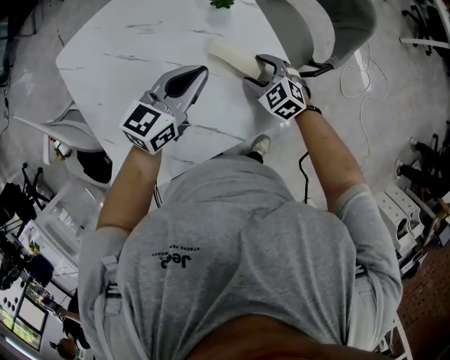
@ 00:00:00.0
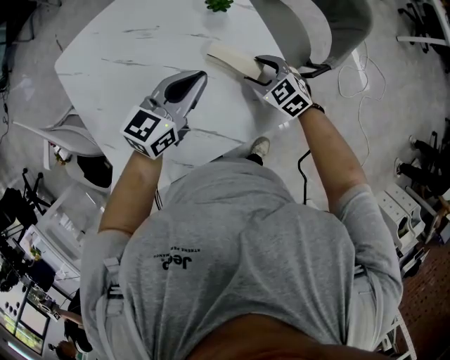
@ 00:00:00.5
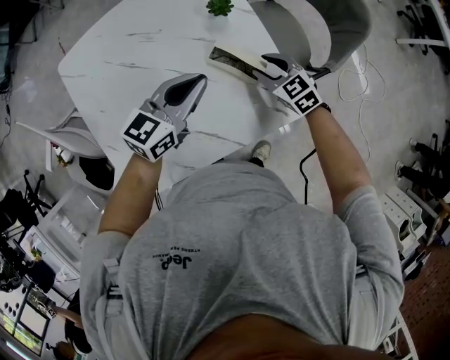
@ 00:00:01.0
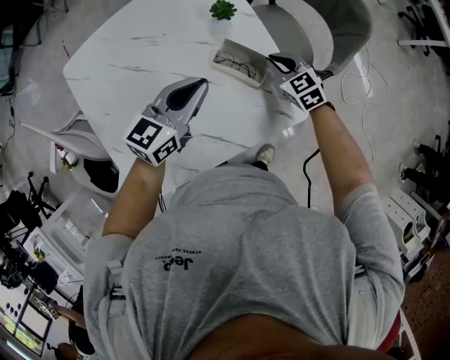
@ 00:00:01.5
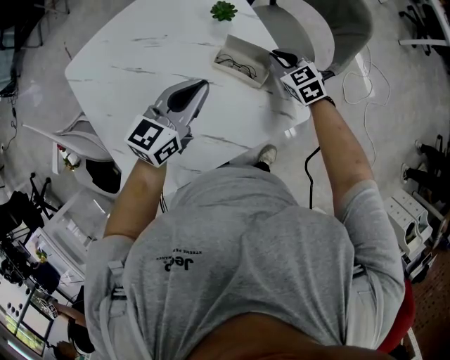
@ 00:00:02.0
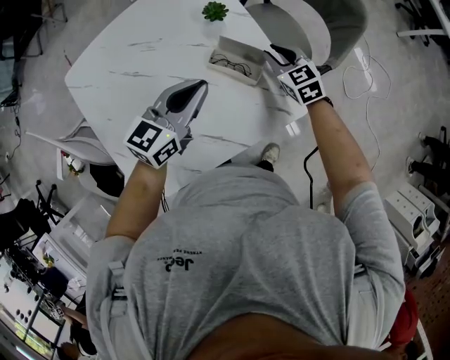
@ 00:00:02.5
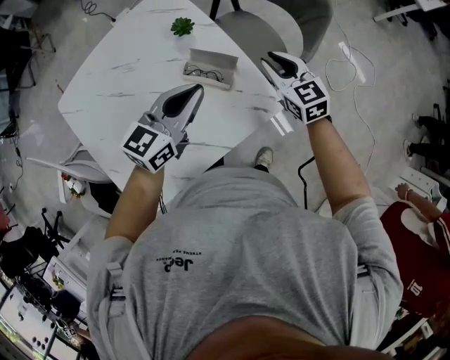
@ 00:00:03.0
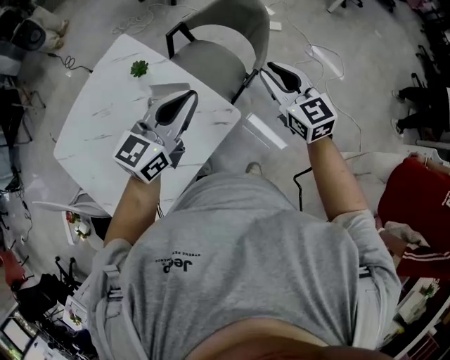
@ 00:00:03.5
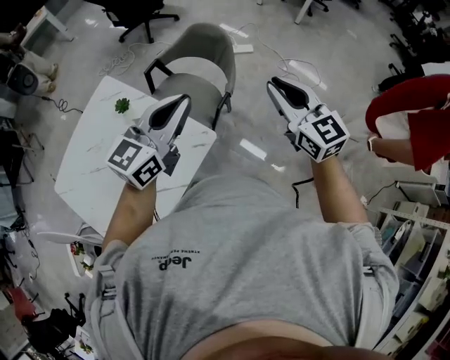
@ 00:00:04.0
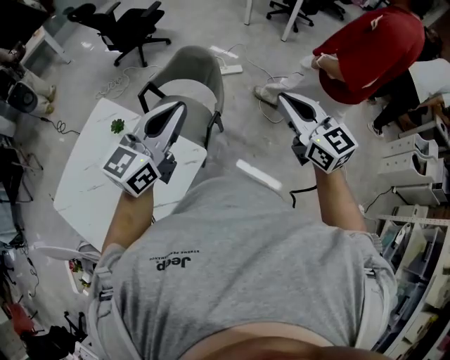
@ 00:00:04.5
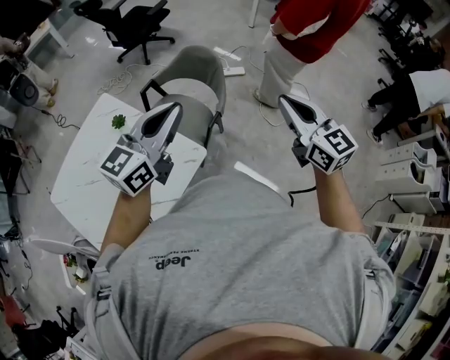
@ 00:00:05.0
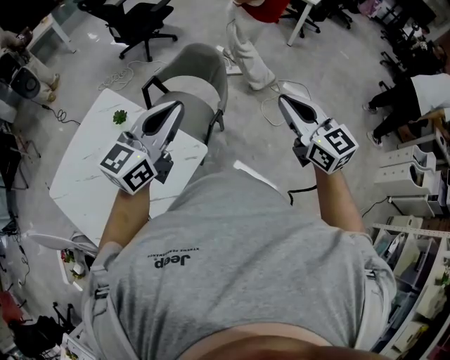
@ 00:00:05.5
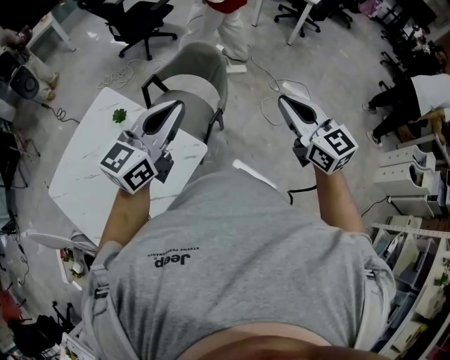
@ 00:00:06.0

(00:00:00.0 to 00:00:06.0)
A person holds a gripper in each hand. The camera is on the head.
00:00:00.0 - 00:00:02.0: The right gripper shifts about 10 cm forward and to the right, and closes.
00:00:02.0 - 00:00:04.0: The left gripper shifts by about 35 cm, and changes its angle by roughly 30 degrees; the right gripper goes about 35 cm upward, and tilts its fingers about 40 degrees upward.
00:00:04.0 - 00:00:06.0: The right gripper heads to the right, covering approximately 5 cm.

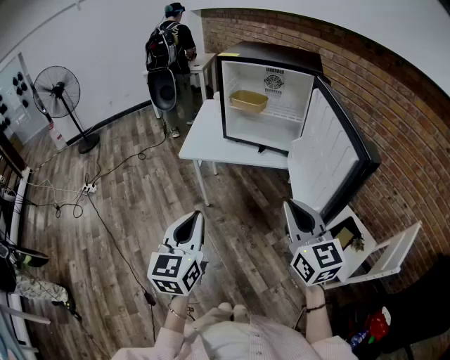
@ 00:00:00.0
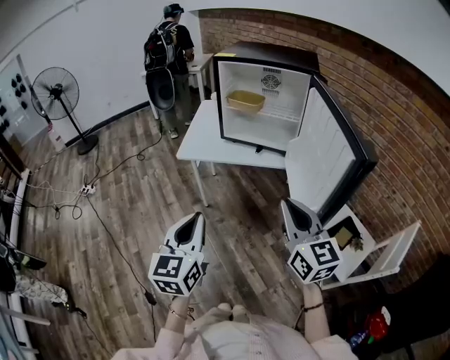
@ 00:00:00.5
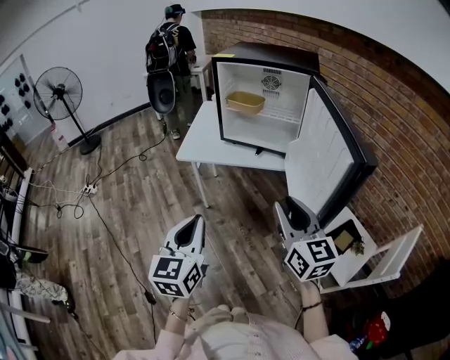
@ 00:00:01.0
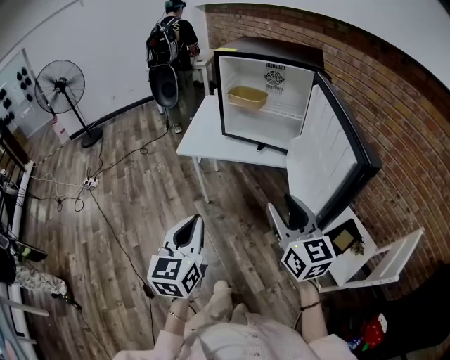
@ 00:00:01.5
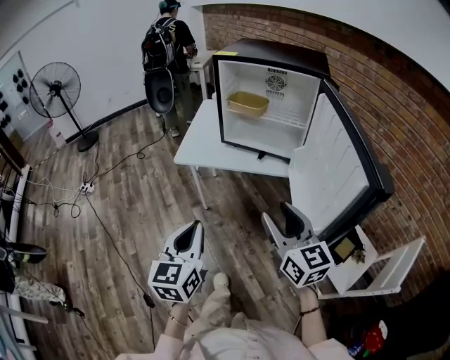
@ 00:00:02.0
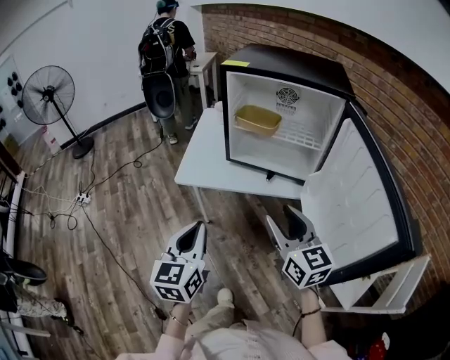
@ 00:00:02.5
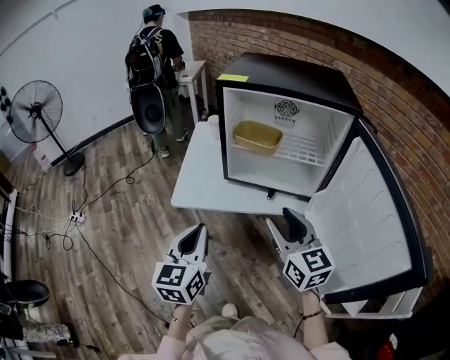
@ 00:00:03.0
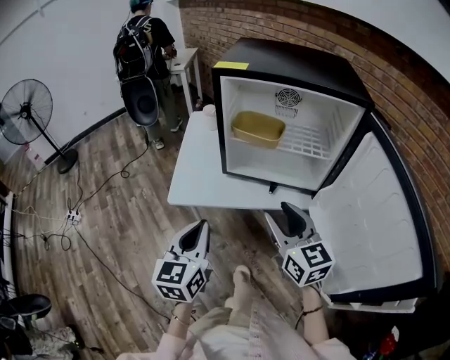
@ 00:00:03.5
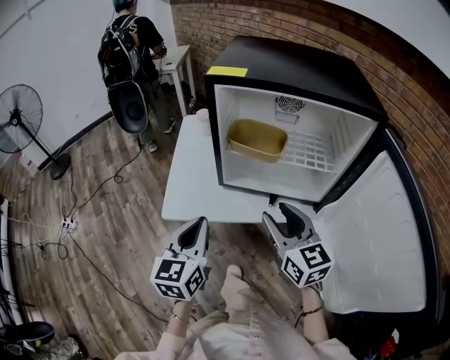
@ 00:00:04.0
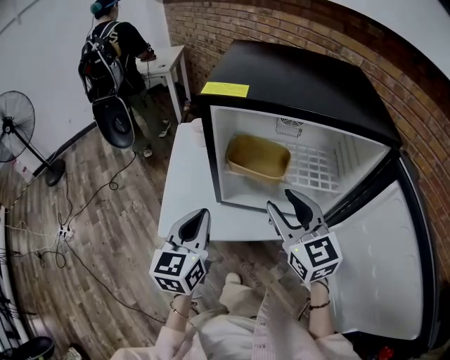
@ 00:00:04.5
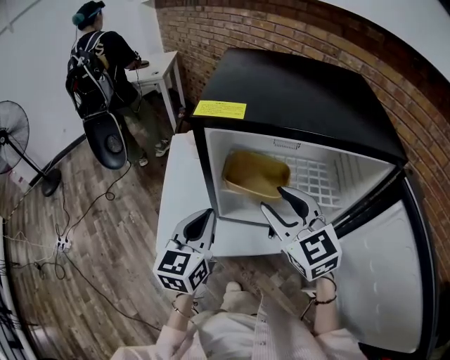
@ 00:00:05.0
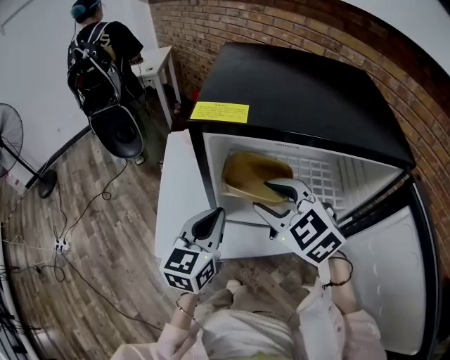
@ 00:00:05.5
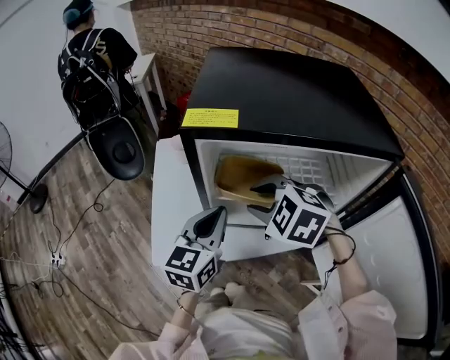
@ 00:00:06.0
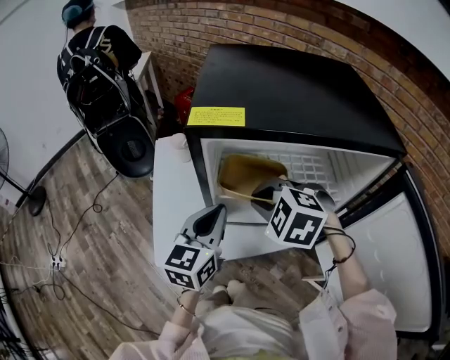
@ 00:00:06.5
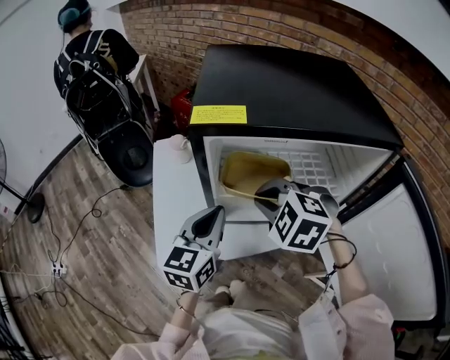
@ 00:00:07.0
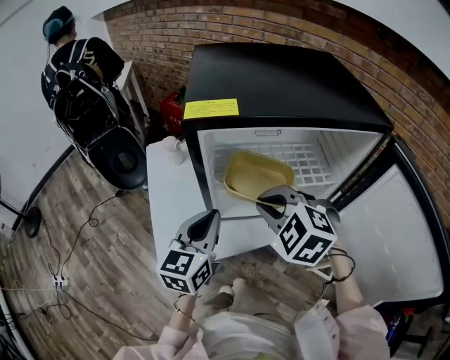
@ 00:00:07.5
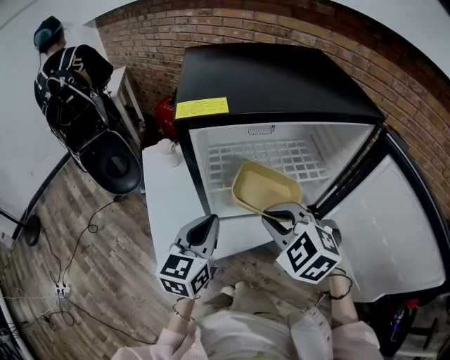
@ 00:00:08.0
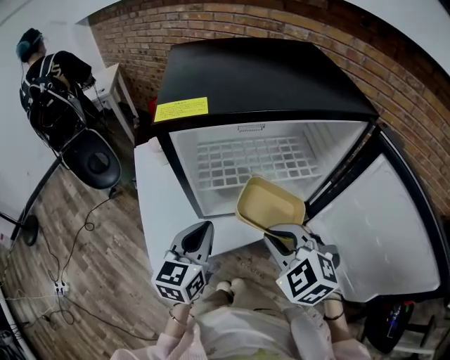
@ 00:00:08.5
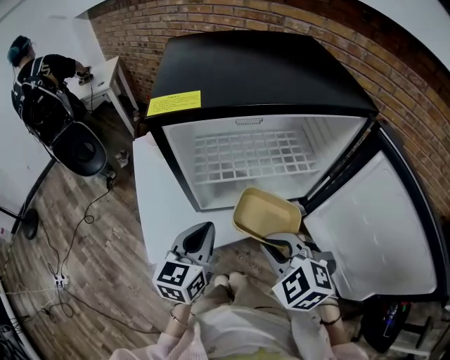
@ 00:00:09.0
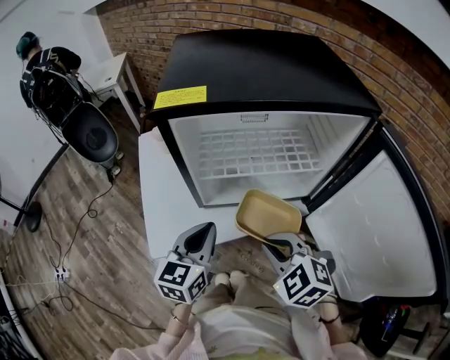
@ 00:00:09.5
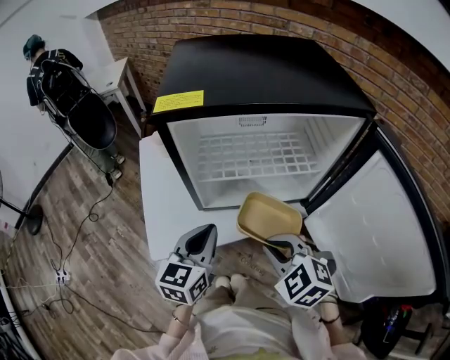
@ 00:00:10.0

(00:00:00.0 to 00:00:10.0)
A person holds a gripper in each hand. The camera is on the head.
00:00:00.0 - 00:00:02.0: The right gripper moves forward, some 5 cm, and opens. Meanwhile the left gripper moves approximately 5 cm.
00:00:02.0 - 00:00:04.0: Both grippers move forward, some 30 cm.
00:00:04.0 - 00:00:06.0: The left gripper shifts approximately 20 cm forward and to the right; the right gripper moves forward, approximately 15 cm, and tilts its fingers approximately 40 degrees downward.
00:00:06.0 - 00:00:08.0: The right gripper shifts about 10 cm backward, rotates about 20 degrees, and closes.
00:00:08.0 - 00:00:10.0: The left gripper shifts by approximately 5 cm, while the right gripper heads backward and downward, covering approximately 10 cm.

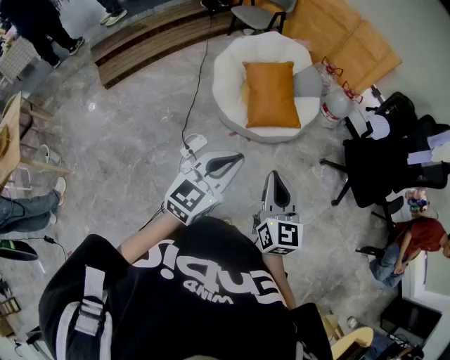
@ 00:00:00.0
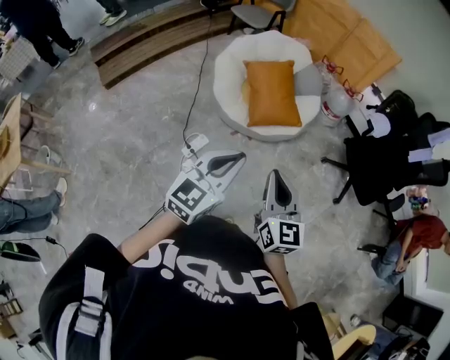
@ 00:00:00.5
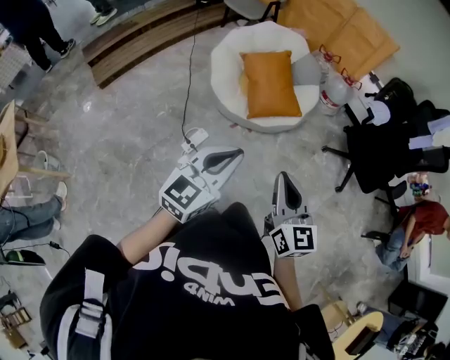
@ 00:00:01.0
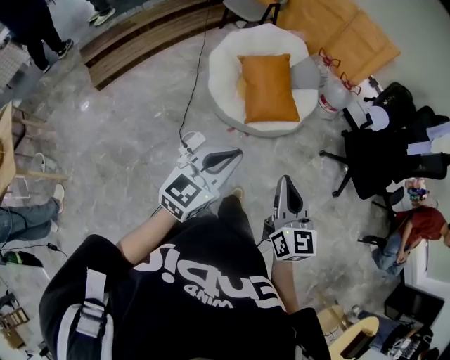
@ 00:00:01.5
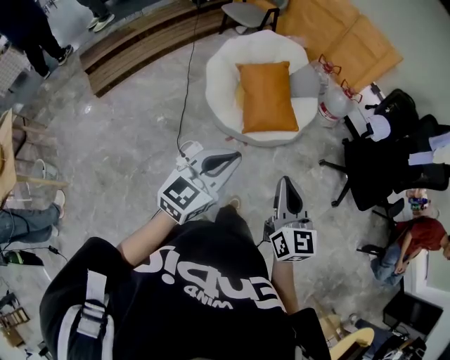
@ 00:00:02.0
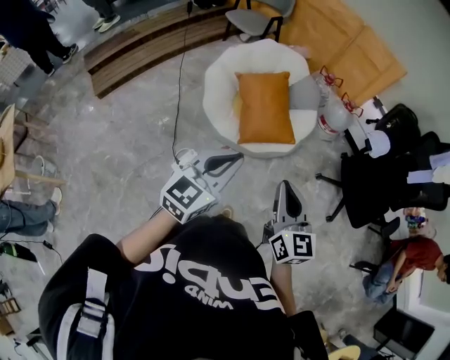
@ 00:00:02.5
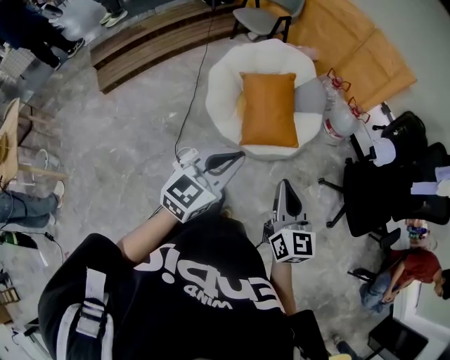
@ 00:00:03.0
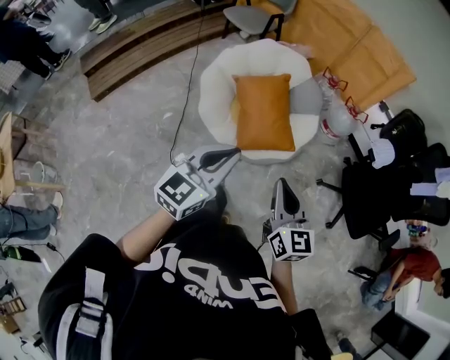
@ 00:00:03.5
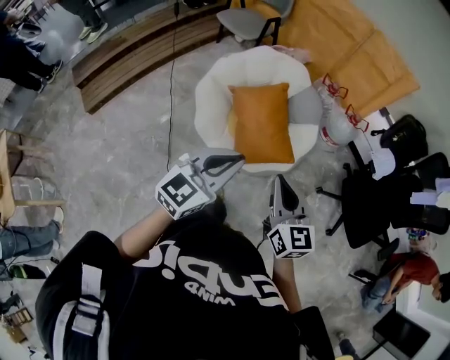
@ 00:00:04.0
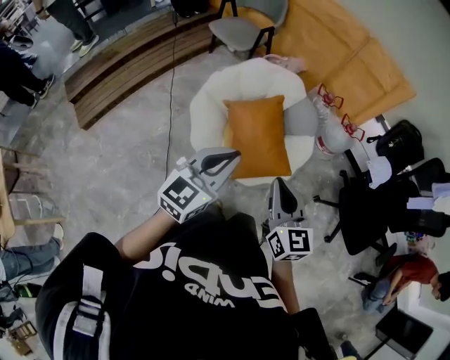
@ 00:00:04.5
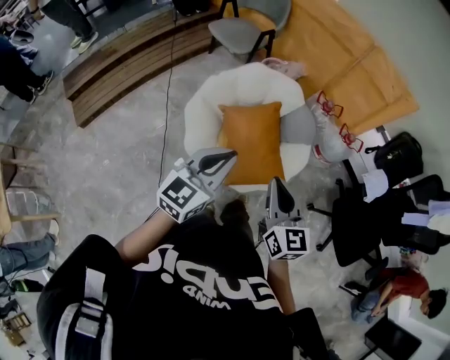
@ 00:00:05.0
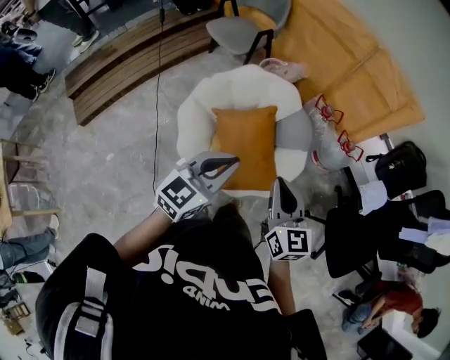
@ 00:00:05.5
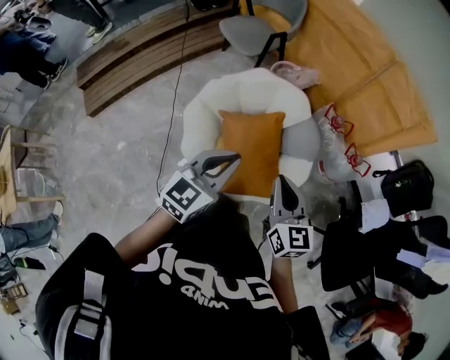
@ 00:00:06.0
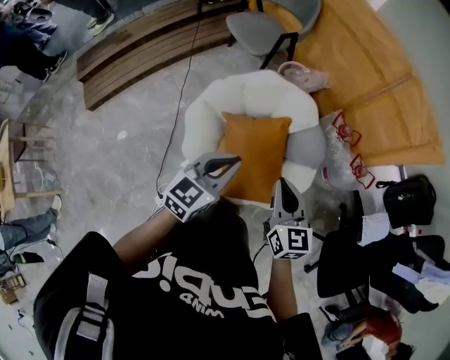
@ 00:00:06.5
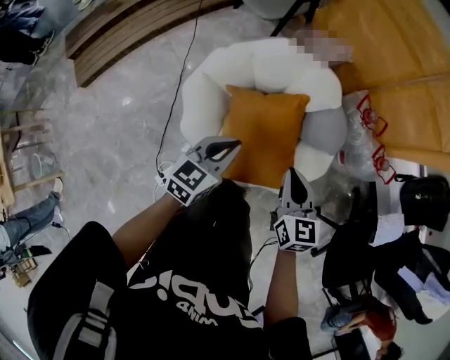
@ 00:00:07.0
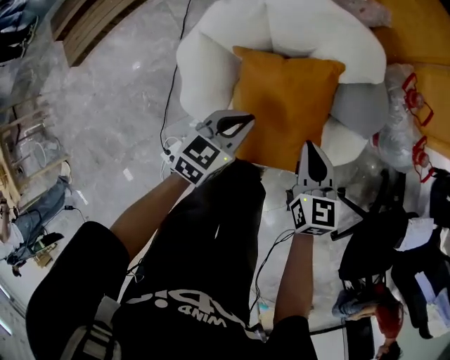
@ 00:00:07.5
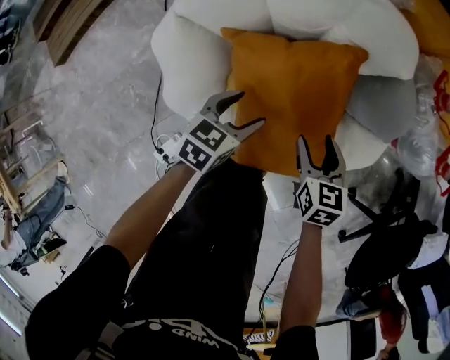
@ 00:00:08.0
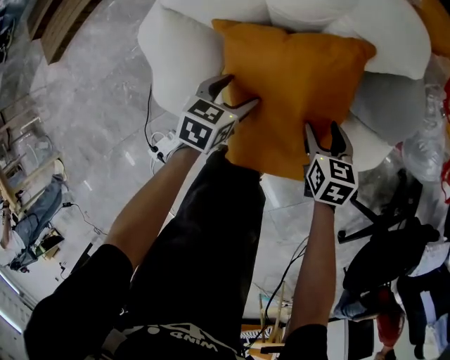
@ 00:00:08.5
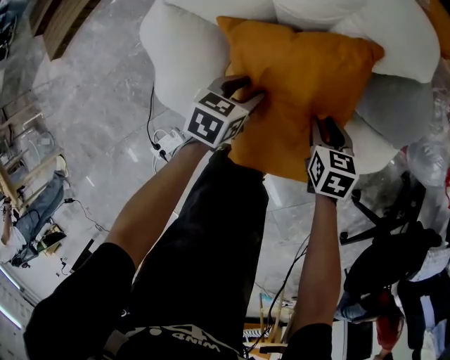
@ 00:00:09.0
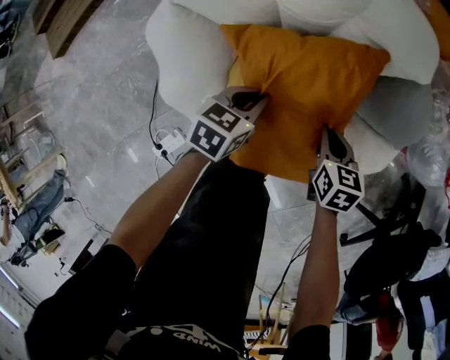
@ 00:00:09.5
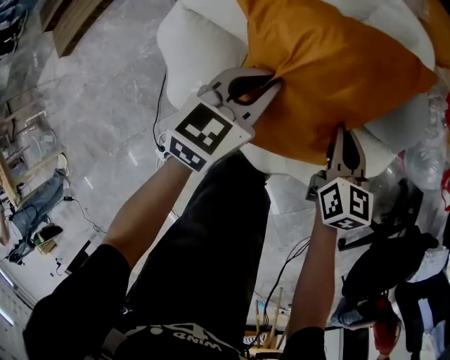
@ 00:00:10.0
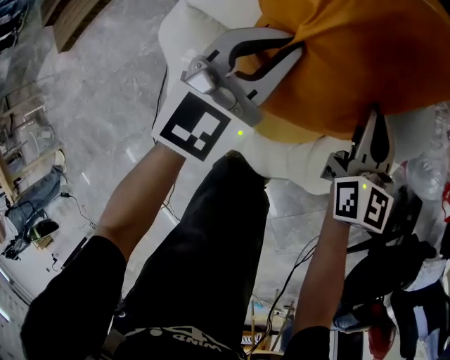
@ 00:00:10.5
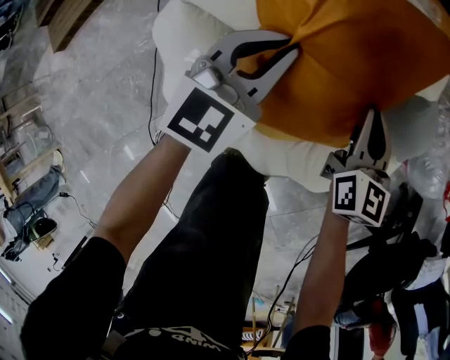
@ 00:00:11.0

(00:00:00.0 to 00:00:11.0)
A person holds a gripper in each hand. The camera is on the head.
00:00:00.0 - 00:00:02.0: The two grippers go roughly 10 cm forward.
00:00:02.0 - 00:00:03.5: The grippers both shift forward by about 15 cm.
00:00:03.5 - 00:00:05.5: The grippers both shift forward by approximately 30 cm.
00:00:05.5 - 00:00:07.5: The two grippers go approximately 40 cm downward and forward. The left gripper changes its angle by approximately 30 degrees. Meanwhile the right gripper rotates some 20 degrees.
00:00:07.5 - 00:00:09.0: The grippers both shift downward by approximately 25 cm. The left gripper rotates approximately 20 degrees, and opens its fingers. Meanwhile the right gripper rotates about 30 degrees, and opens its fingers.
00:00:09.0 - 00:00:11.0: The grippers both shift upward and forward by about 20 cm. The left gripper tips its fingers upward by roughly 30 degrees, and closes its fingers. The right gripper tips its fingers upward by roughly 40 degrees, and closes.
